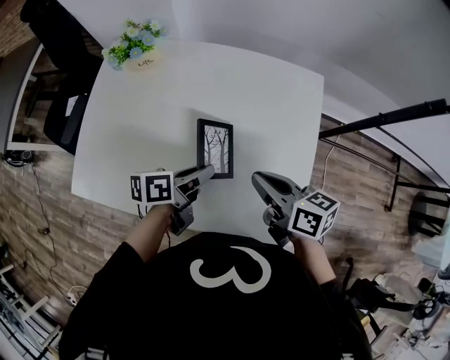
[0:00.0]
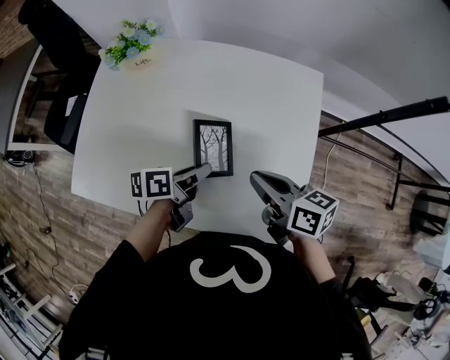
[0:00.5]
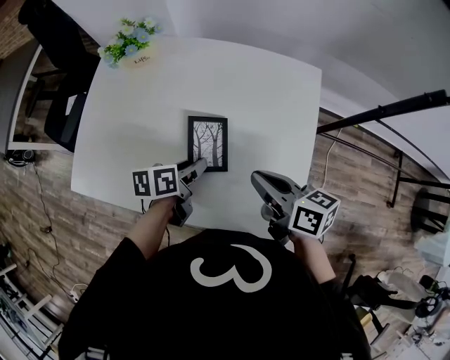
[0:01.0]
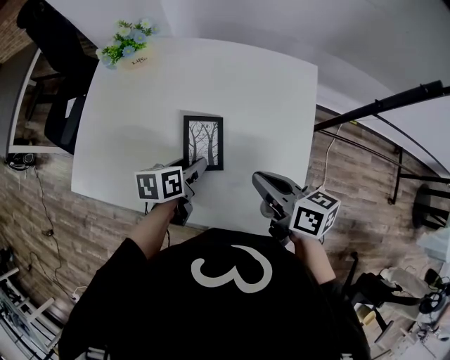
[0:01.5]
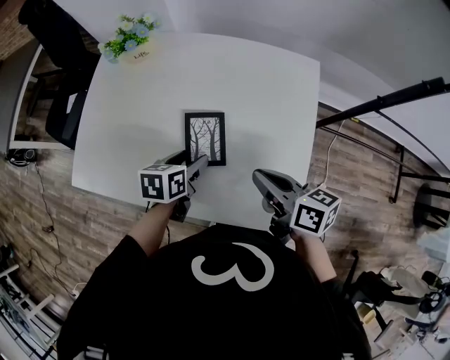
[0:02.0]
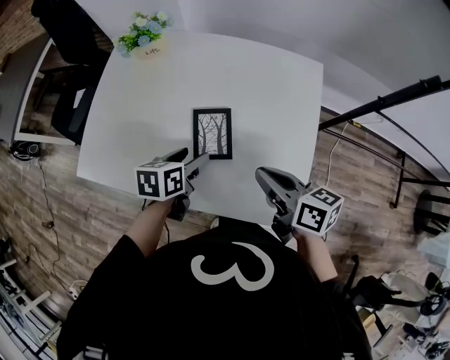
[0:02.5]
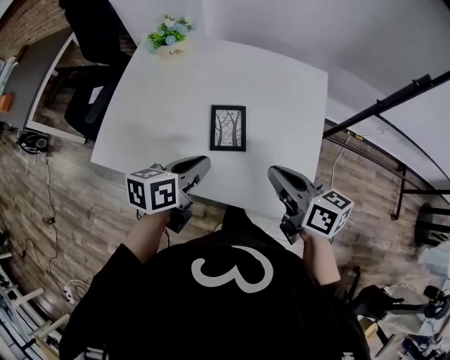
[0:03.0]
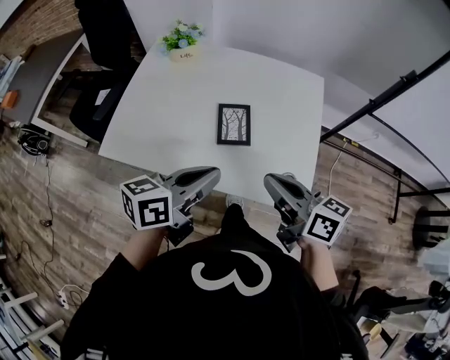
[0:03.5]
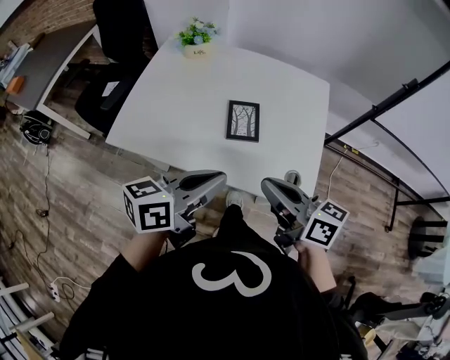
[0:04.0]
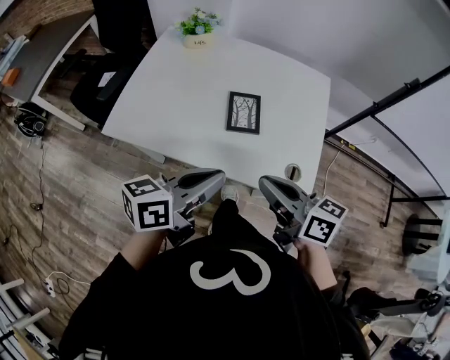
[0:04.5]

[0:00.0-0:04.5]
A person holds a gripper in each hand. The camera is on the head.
0:00.0 to 0:02.0: The left gripper shifts by approximately 5 cm, turns by approximately 30 degrees, and opens.
0:02.0 to 0:04.5: The right gripper goes approximately 20 cm backward, upward and to the left. The left gripper moves backward and upward, about 30 cm, angles its fingers upward, by about 40 degrees, and closes up.

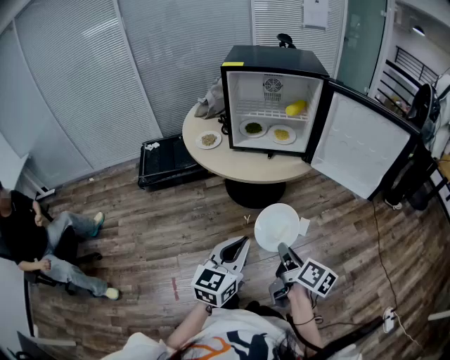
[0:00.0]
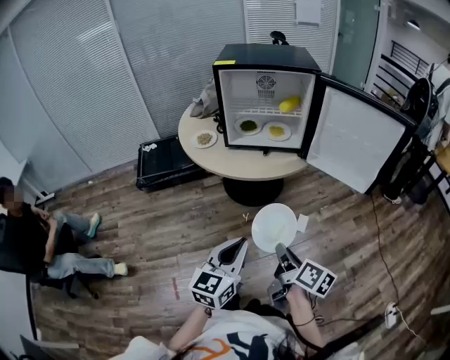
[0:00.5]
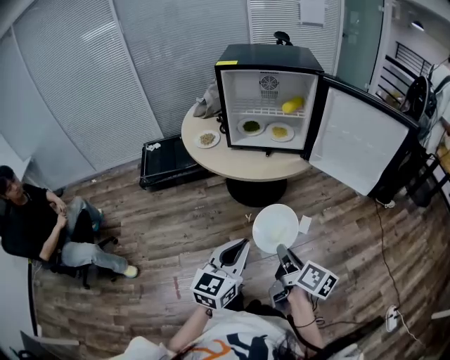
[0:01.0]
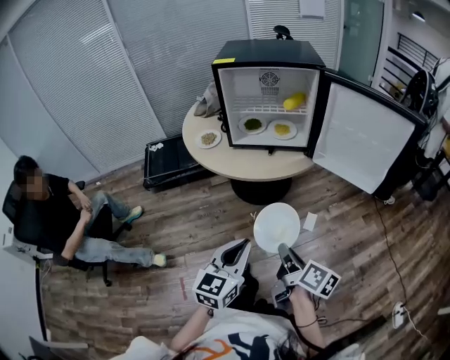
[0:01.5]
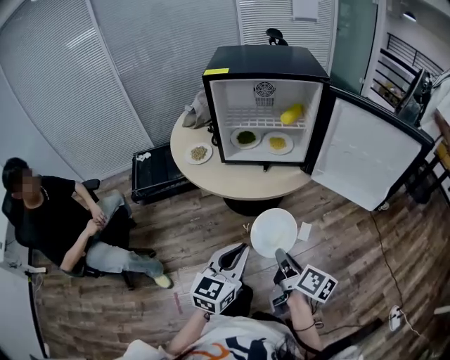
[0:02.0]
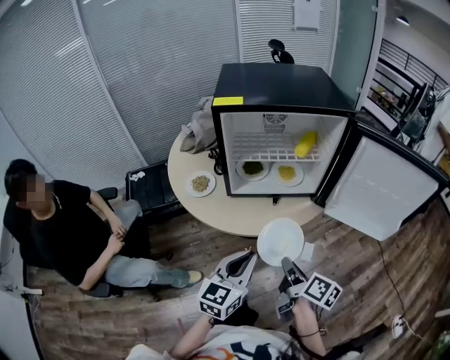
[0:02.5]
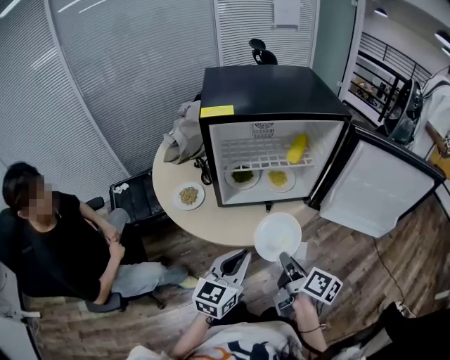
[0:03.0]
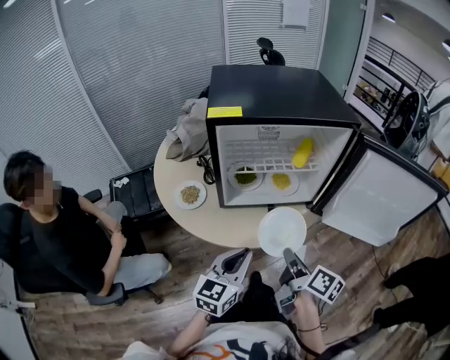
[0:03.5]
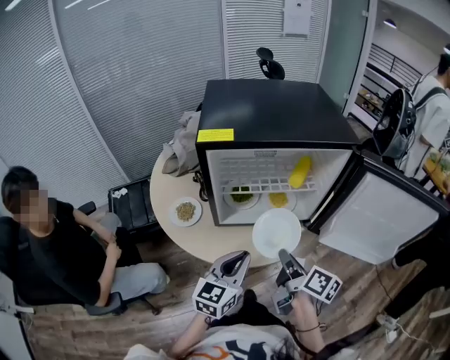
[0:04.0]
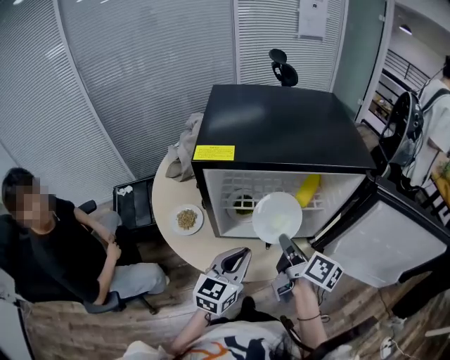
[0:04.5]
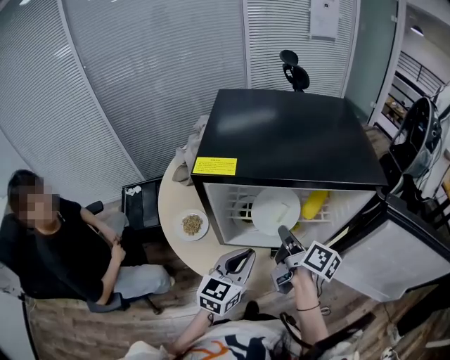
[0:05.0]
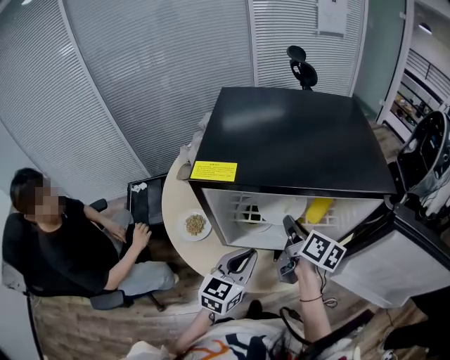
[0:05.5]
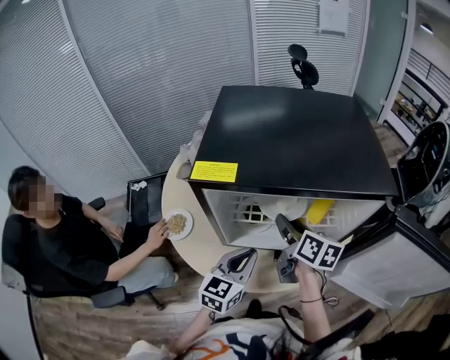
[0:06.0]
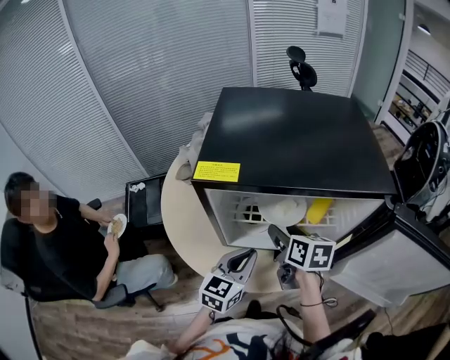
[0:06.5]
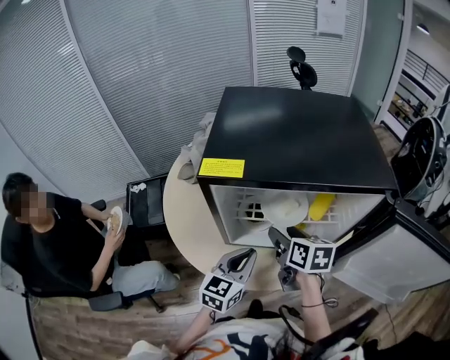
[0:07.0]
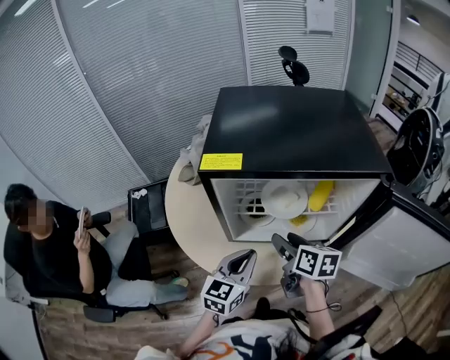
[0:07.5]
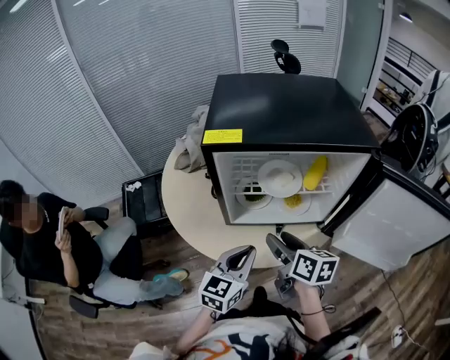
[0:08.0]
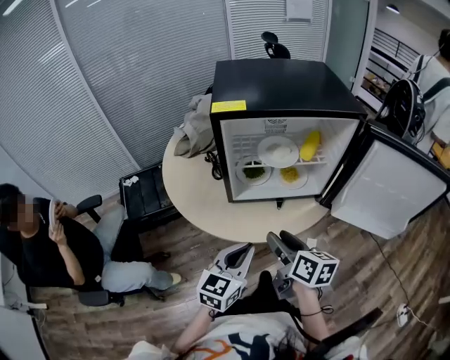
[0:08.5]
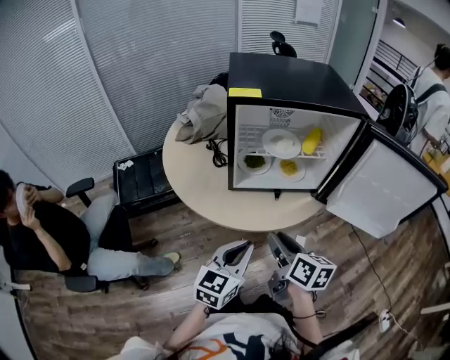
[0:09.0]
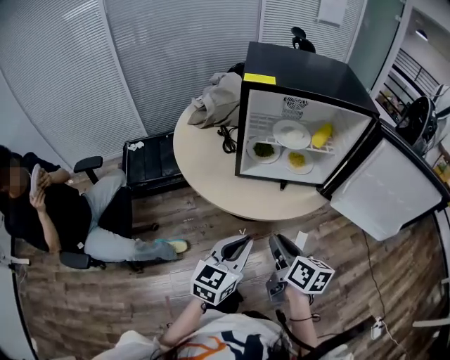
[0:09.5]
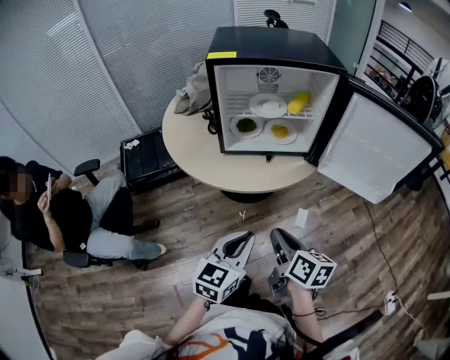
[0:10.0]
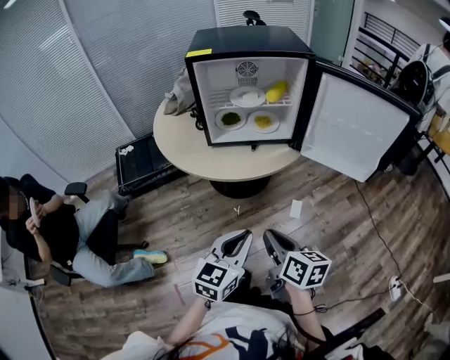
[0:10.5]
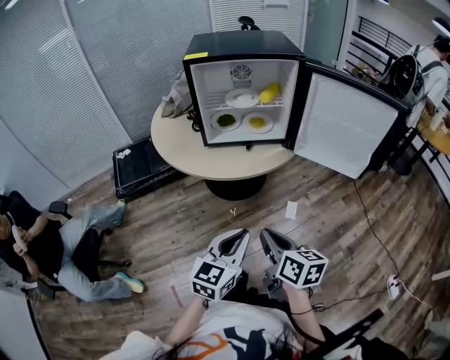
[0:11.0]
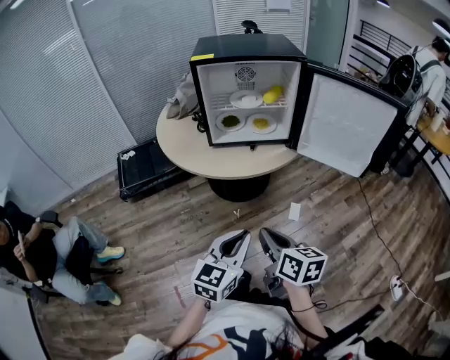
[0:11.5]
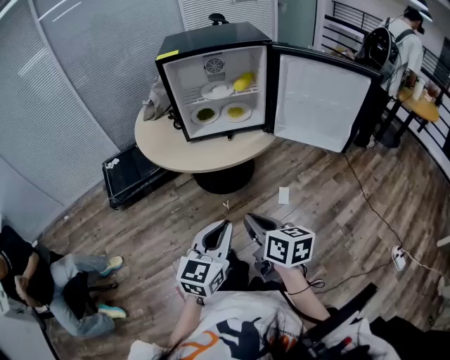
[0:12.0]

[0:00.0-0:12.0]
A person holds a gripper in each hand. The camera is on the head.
0:00.0 to 0:02.0: The two grippers go roughly 10 cm forward.
0:02.0 to 0:04.0: Both grippers travel together forward, roughly 25 cm.
0:04.0 to 0:06.0: The right gripper is displaced forward by some 20 cm, turns by roughly 20 degrees, and opens up. Meanwhile the left gripper moves forward, roughly 10 cm.
0:06.0 to 0:08.0: The left gripper goes approximately 10 cm backward; the right gripper moves backward, about 15 cm.
0:08.0 to 0:10.0: The grippers both shift backward by some 25 cm. The right gripper closes its fingers.
0:10.0 to 0:12.0: Both grippers move backward, some 10 cm.

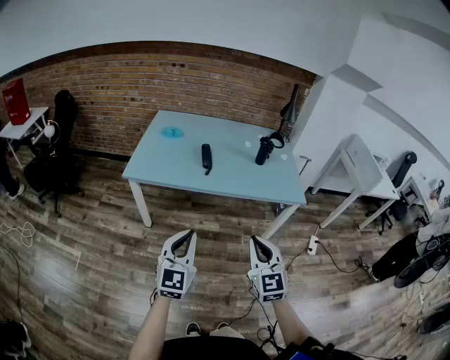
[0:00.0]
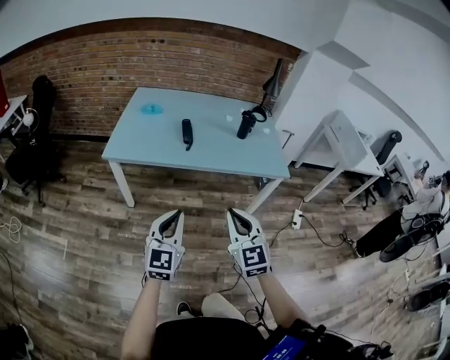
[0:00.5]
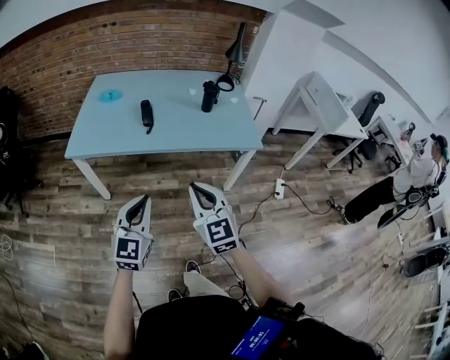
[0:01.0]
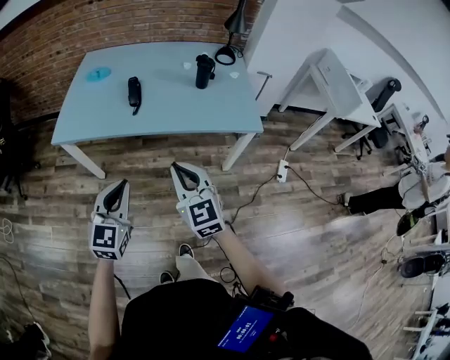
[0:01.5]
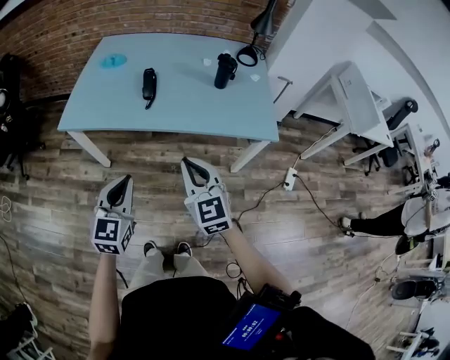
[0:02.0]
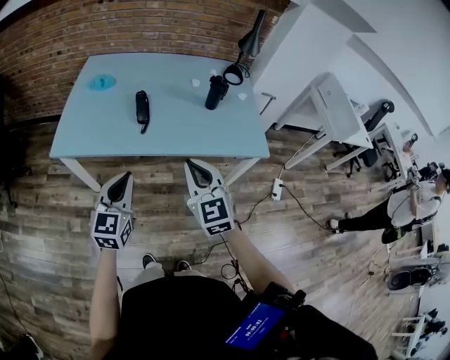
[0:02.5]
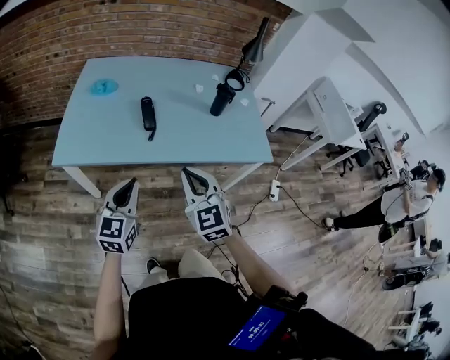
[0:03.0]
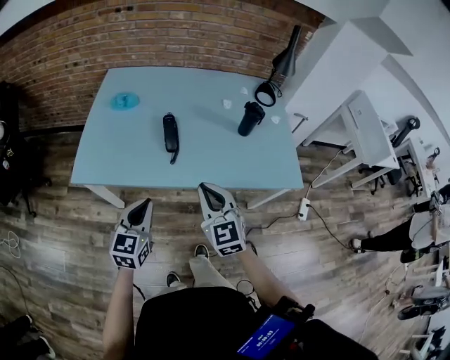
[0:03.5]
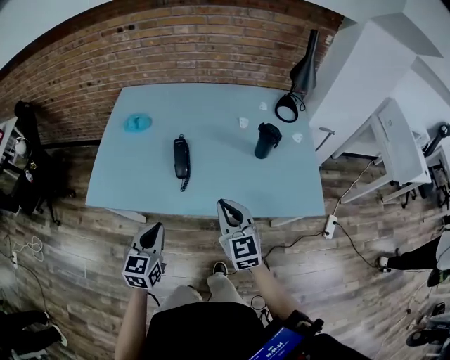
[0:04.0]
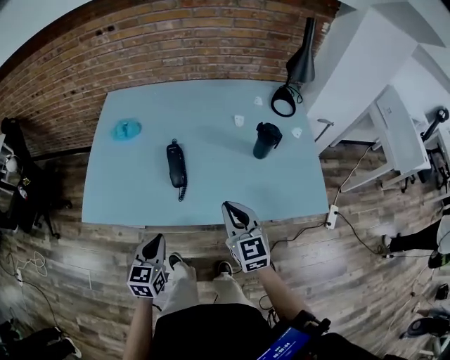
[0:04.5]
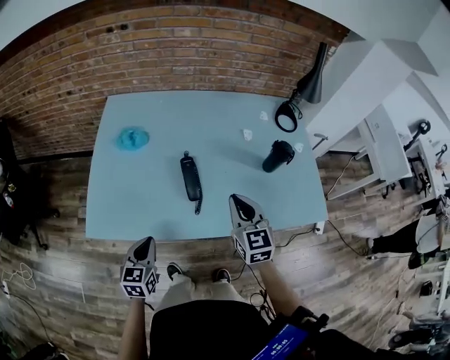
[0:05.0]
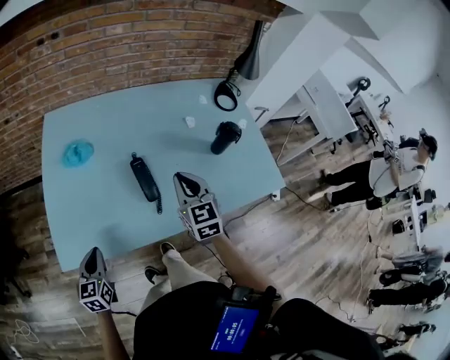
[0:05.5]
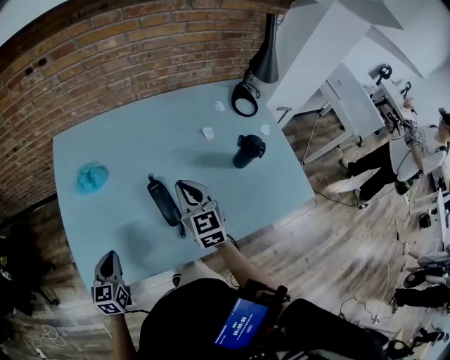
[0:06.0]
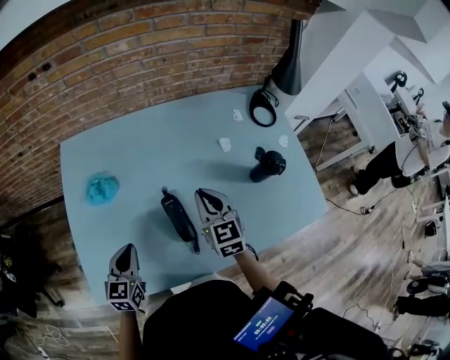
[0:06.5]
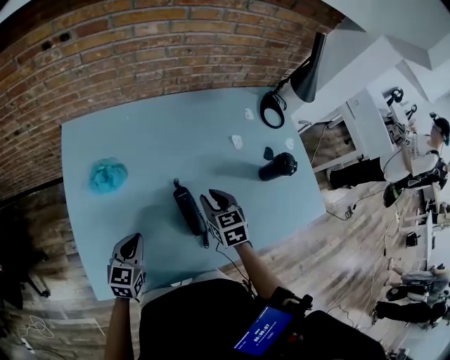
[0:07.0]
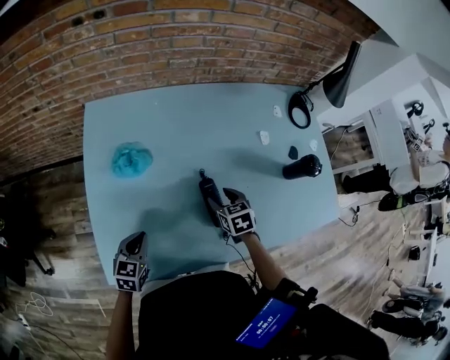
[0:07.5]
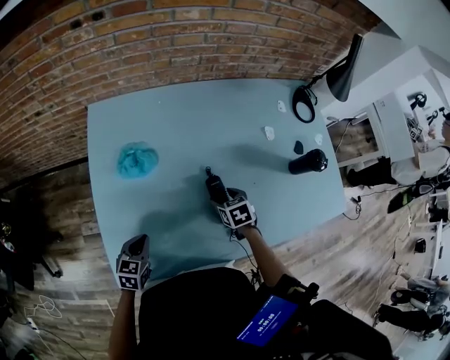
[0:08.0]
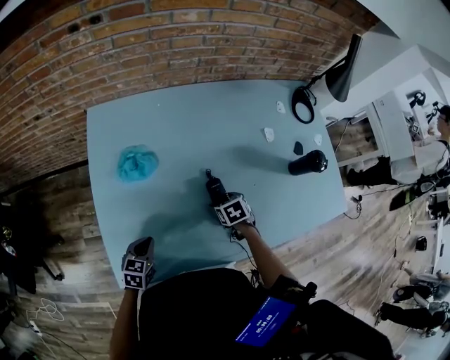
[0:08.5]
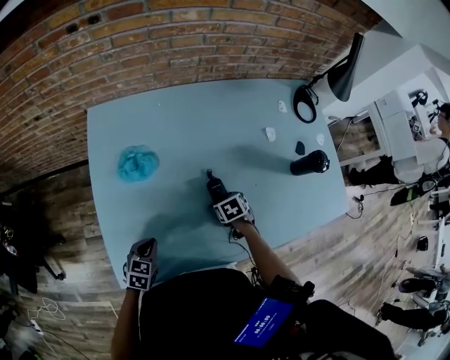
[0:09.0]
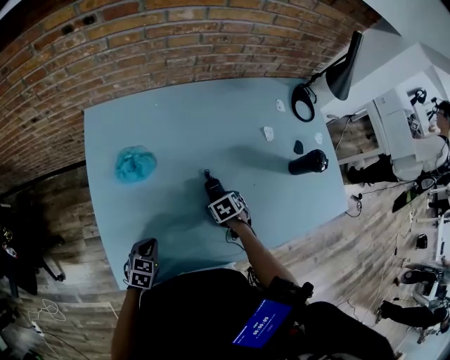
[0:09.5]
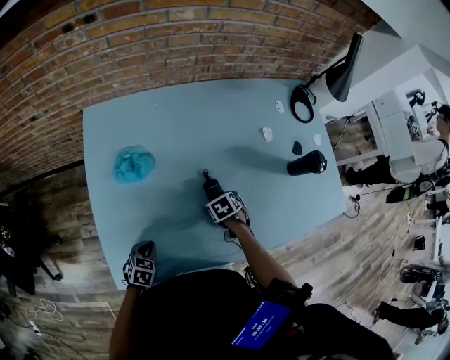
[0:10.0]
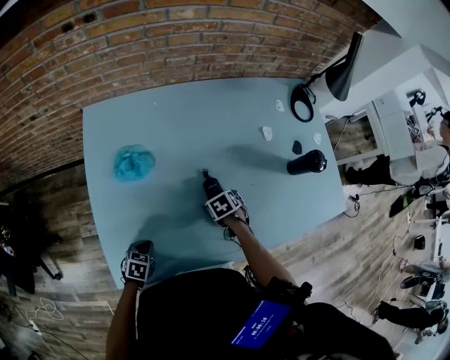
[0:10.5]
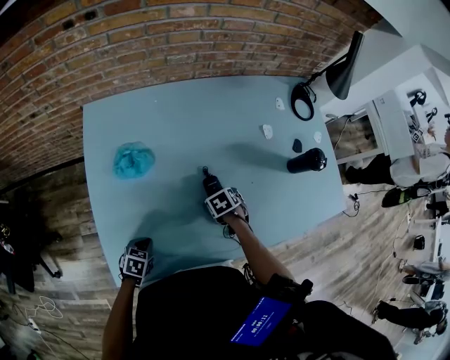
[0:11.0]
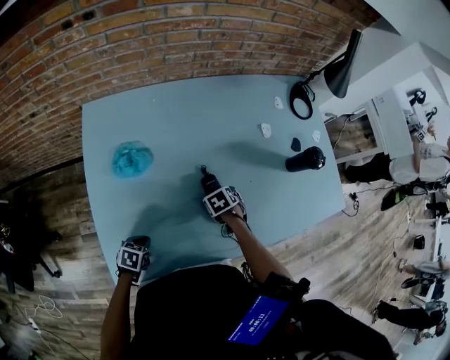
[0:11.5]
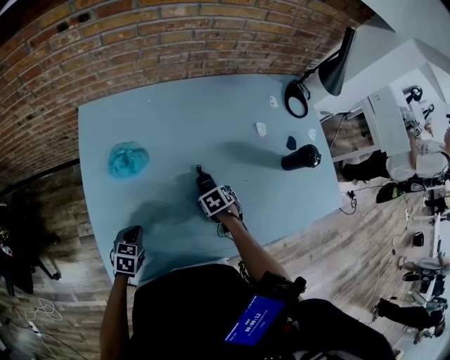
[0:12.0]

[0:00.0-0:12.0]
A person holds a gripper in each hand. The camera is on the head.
0:00.0 to 0:02.0: The right gripper heads forward, covering roughly 20 cm; the left gripper is displaced forward, downward and to the right by approximately 20 cm.
0:02.0 to 0:04.0: Both grippers travel together forward, roughly 25 cm.
0:04.0 to 0:06.0: The left gripper travels to the left and forward by some 30 cm. The right gripper travels forward and to the left by roughly 30 cm.
0:06.0 to 0:08.0: The right gripper moves downward and to the left, some 20 cm, tilts its fingers about 40 degrees downward, and opens, while the left gripper moves to the left, downward and forward, about 15 cm.
0:08.0 to 0:10.0: Both grippers travel together downward, approximately 5 cm.
0:10.0 to 0:12.0: The left gripper shifts by approximately 5 cm.
